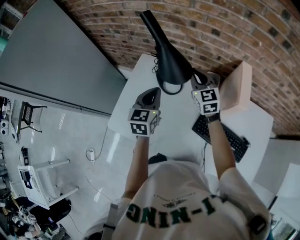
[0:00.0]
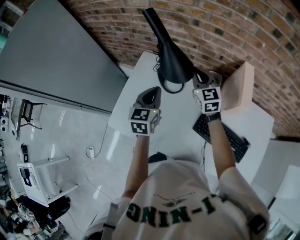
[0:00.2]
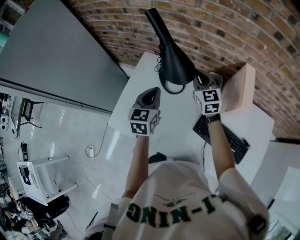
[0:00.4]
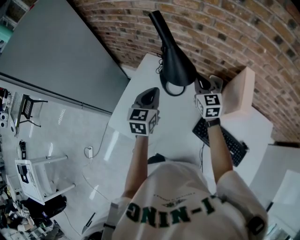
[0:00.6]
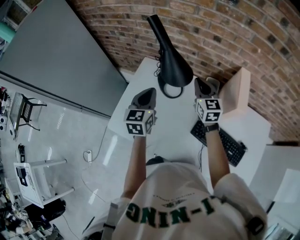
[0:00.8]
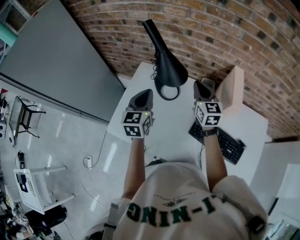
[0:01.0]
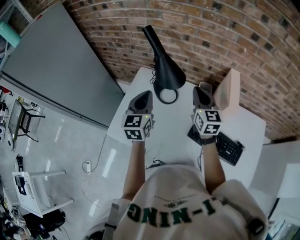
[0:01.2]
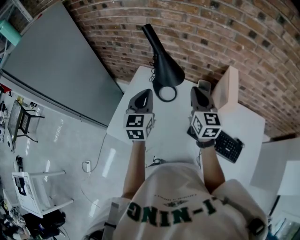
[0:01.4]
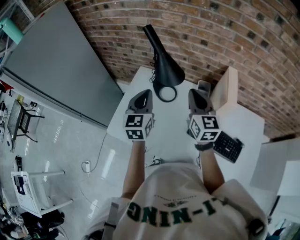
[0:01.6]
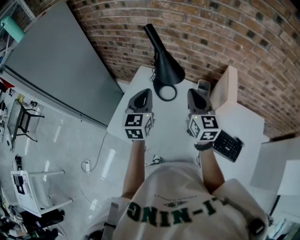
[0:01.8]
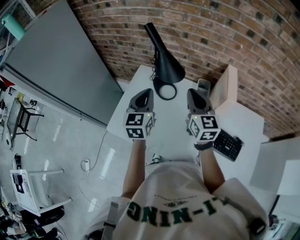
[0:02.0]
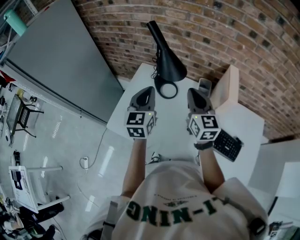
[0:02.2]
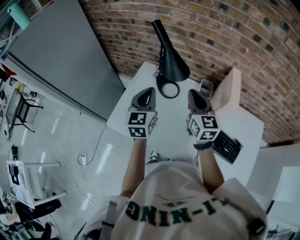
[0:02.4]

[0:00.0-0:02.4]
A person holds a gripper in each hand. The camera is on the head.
0:00.0 to 0:01.2: The left gripper goes about 5 cm upward; the right gripper is displaced backward by about 10 cm.
0:01.2 to 0:02.4: The right gripper shifts roughly 5 cm backward.

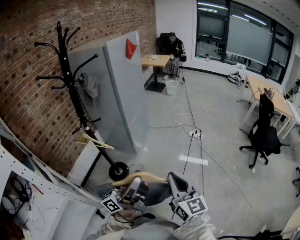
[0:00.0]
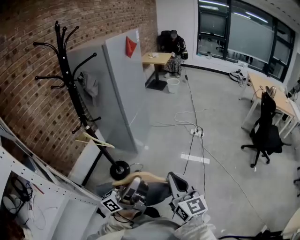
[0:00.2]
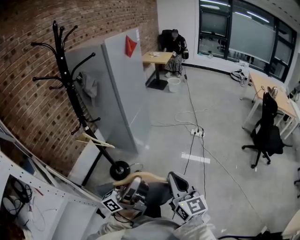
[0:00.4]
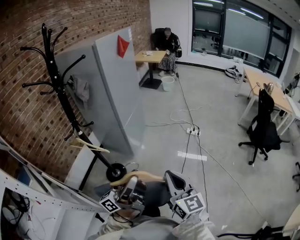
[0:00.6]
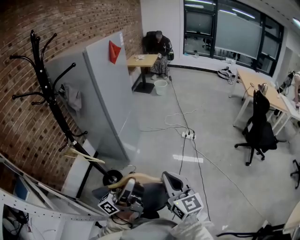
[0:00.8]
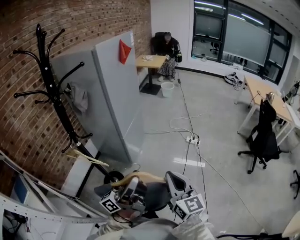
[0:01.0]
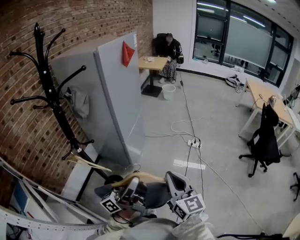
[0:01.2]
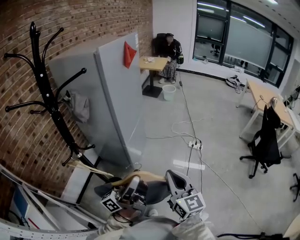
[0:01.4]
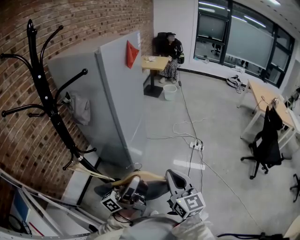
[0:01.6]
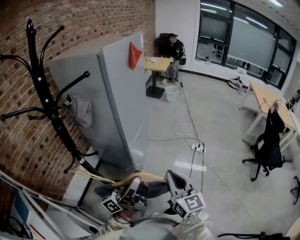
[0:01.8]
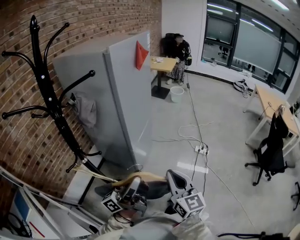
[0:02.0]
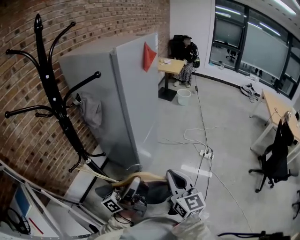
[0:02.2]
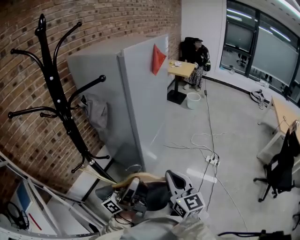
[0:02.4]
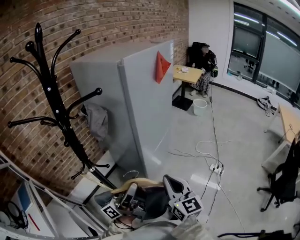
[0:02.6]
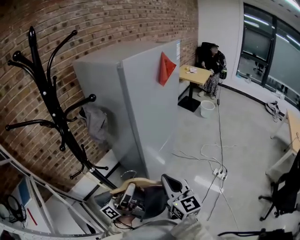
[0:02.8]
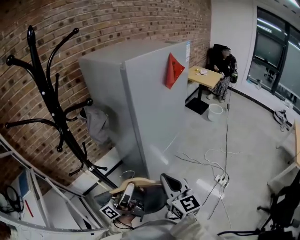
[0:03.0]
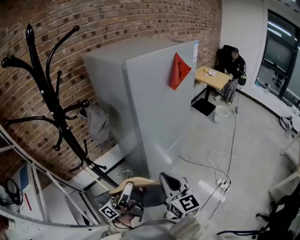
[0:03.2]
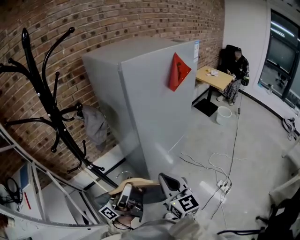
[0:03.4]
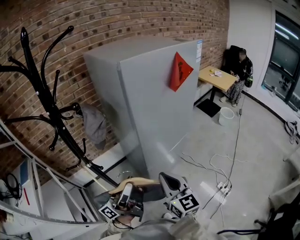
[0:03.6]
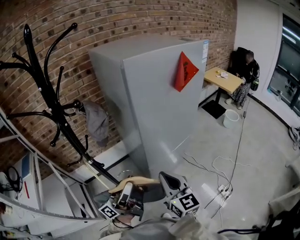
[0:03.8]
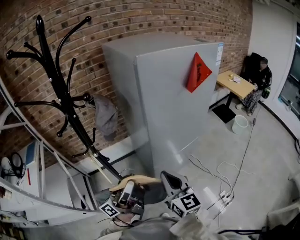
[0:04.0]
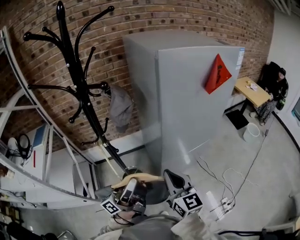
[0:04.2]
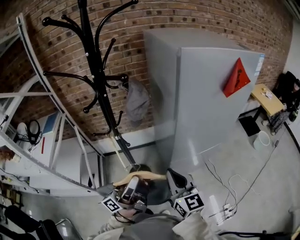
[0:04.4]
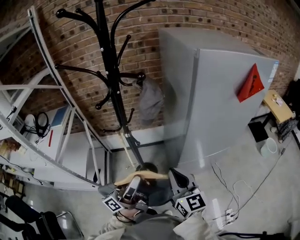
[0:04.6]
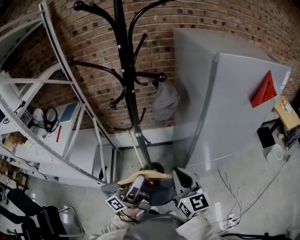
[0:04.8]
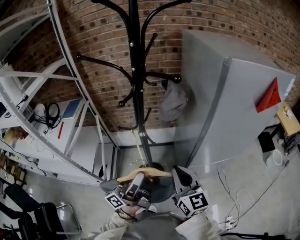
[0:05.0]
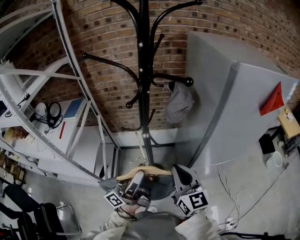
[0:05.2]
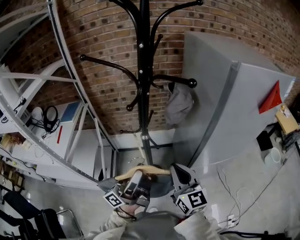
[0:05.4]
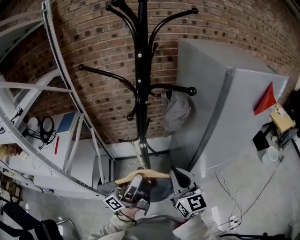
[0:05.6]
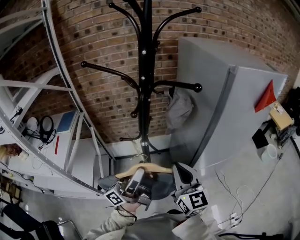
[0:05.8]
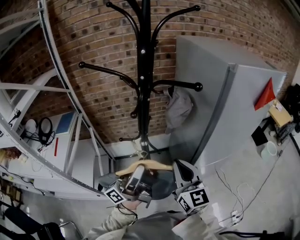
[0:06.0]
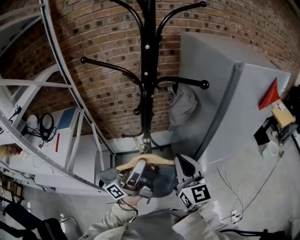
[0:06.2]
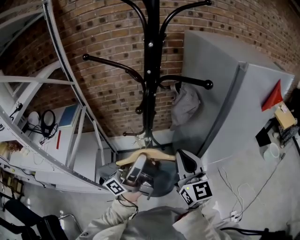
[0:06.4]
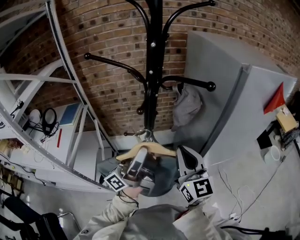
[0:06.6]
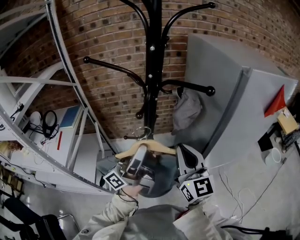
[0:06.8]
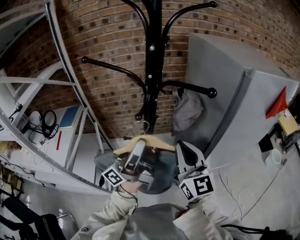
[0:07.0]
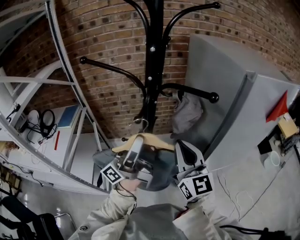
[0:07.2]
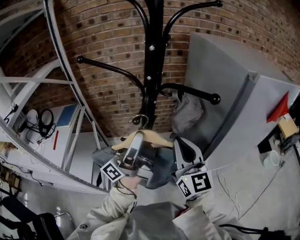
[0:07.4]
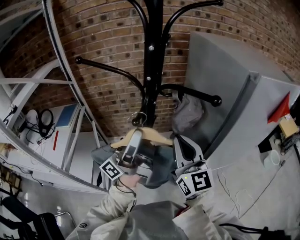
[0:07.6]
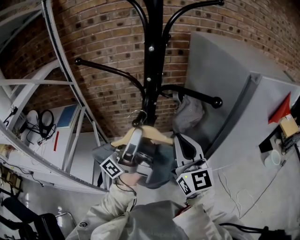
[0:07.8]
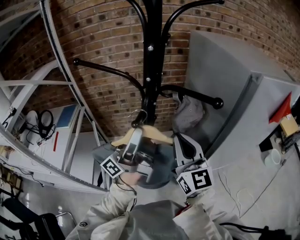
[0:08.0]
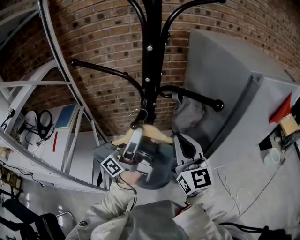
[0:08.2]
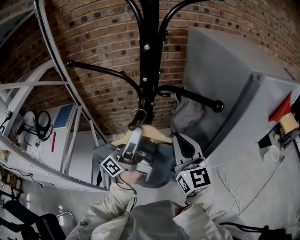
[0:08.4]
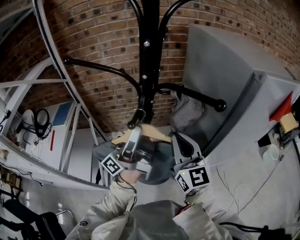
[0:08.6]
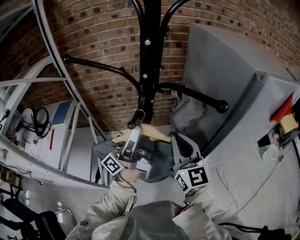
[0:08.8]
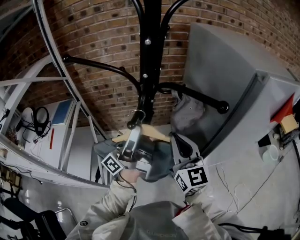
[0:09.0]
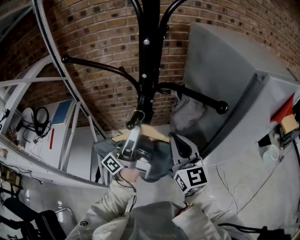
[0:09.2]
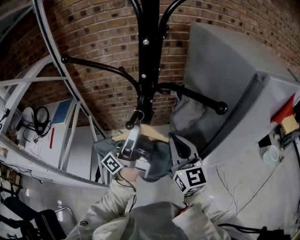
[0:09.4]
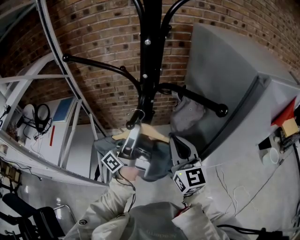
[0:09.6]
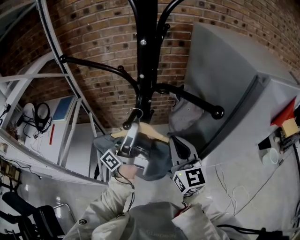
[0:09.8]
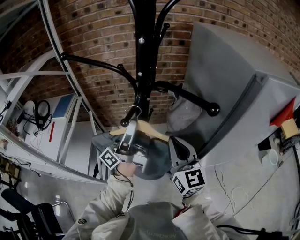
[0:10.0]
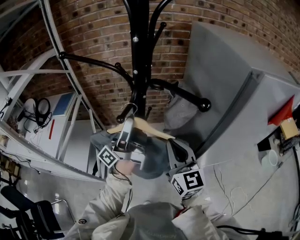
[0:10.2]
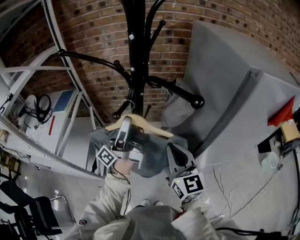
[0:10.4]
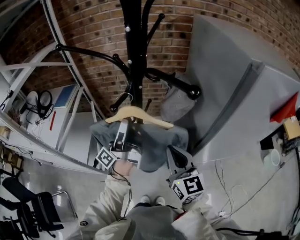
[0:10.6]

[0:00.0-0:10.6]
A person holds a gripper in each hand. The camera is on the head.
0:00.0 to 0:01.6: Both grippers travel together forward and to the left, about 30 cm.
0:01.6 to 0:03.0: The left gripper moves approximately 20 cm, and rotates approximately 30 degrees. The right gripper shifts by roughly 25 cm, and rotates some 30 degrees.
0:03.0 to 0:04.6: The right gripper changes place by some 5 cm, and swivels some 30 degrees. Meanwhile the left gripper changes its angle by approximately 30 degrees.
0:04.6 to 0:06.0: The right gripper heads to the left, covering some 10 cm. Meanwhile the left gripper travels to the left, forward and upward by some 15 cm.
0:06.0 to 0:07.6: The grippers both shift forward and upward by some 15 cm.
0:07.6 to 0:09.0: The left gripper changes place by approximately 5 cm. Meanwhile the right gripper ends up about 5 cm from where it was.
0:09.0 to 0:10.6: The left gripper shifts approximately 5 cm downward; the right gripper travels backward and downward by some 10 cm.

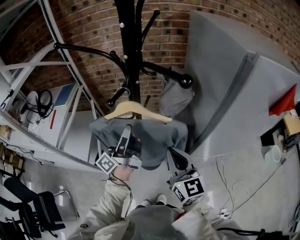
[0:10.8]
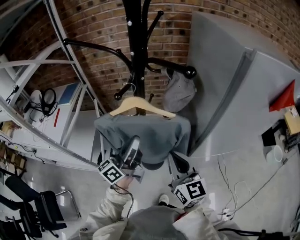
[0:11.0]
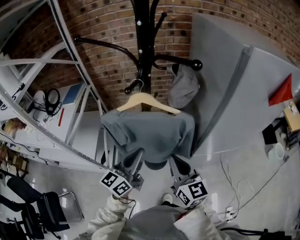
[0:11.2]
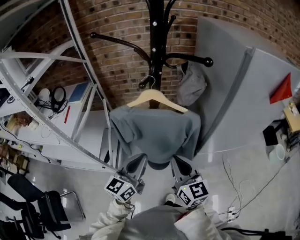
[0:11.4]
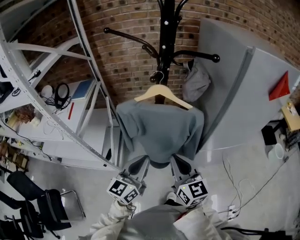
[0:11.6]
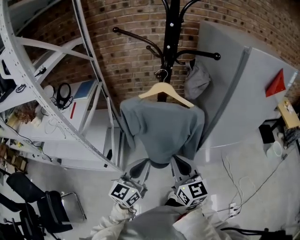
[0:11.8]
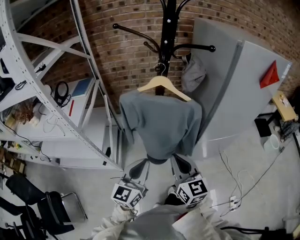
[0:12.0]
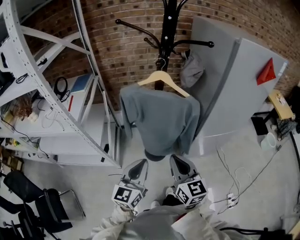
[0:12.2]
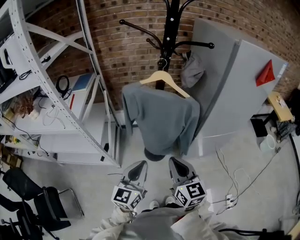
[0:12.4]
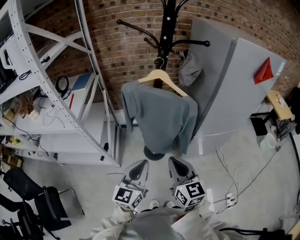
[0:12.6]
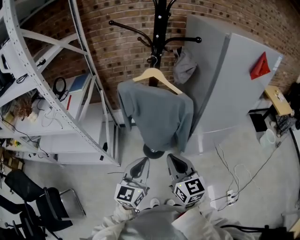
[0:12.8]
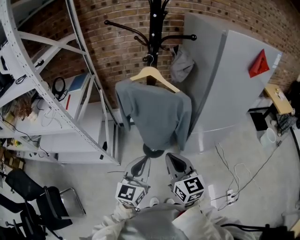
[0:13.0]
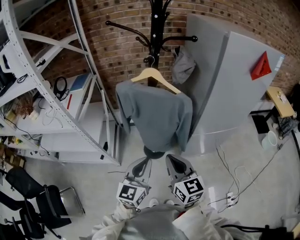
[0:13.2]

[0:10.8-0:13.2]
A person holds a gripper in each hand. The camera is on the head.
0:10.8 to 0:12.0: The left gripper shifts approximately 30 cm backward, and rolls clockwise, seen from behind, by roughly 60 degrees, while the right gripper moves backward and to the left, about 25 cm.
0:12.0 to 0:13.2: The left gripper shifts some 5 cm to the right. Meanwhile the right gripper shifts roughly 5 cm backward.

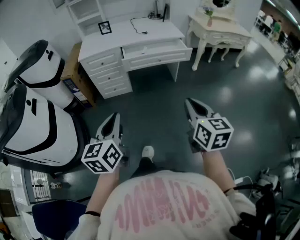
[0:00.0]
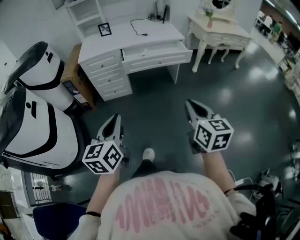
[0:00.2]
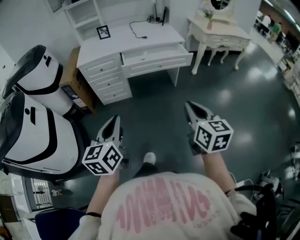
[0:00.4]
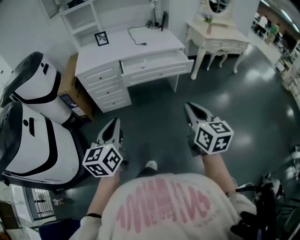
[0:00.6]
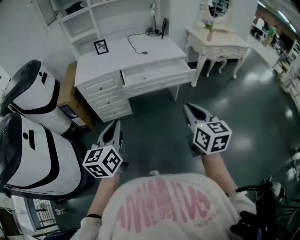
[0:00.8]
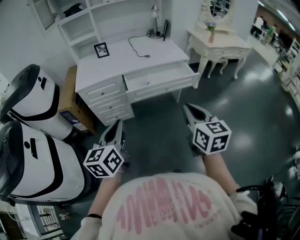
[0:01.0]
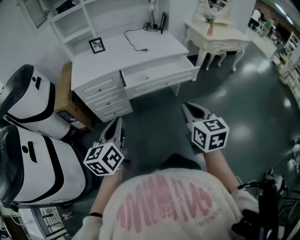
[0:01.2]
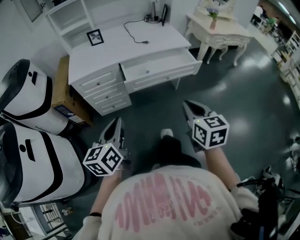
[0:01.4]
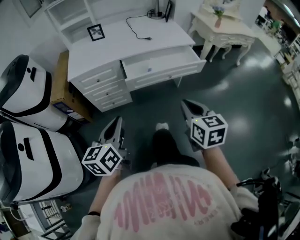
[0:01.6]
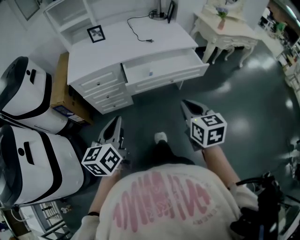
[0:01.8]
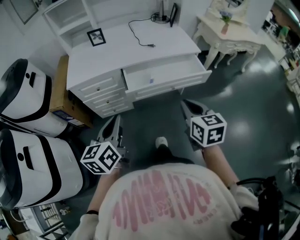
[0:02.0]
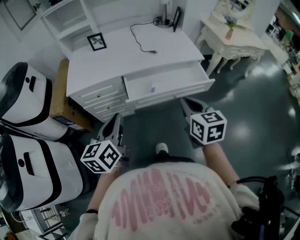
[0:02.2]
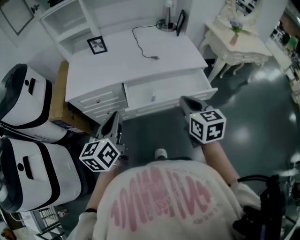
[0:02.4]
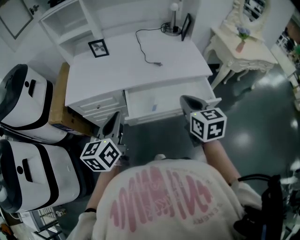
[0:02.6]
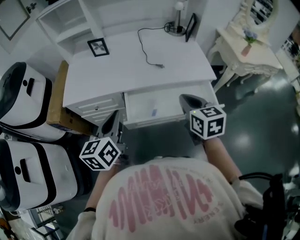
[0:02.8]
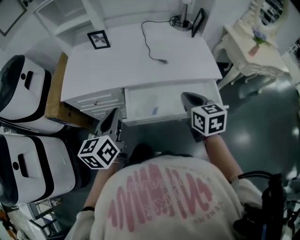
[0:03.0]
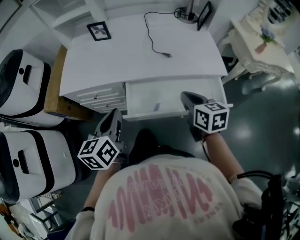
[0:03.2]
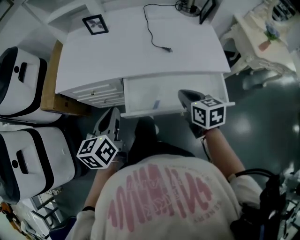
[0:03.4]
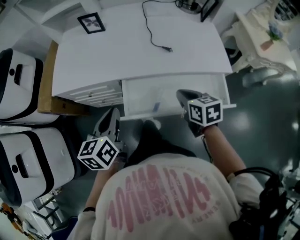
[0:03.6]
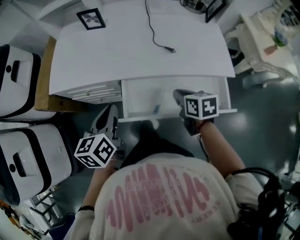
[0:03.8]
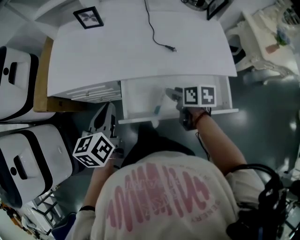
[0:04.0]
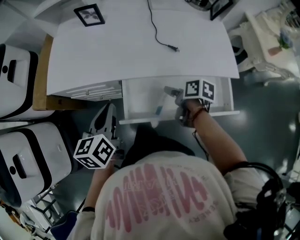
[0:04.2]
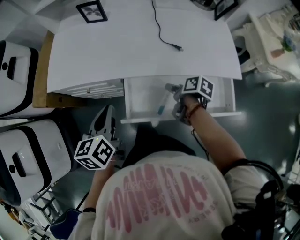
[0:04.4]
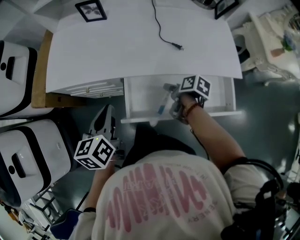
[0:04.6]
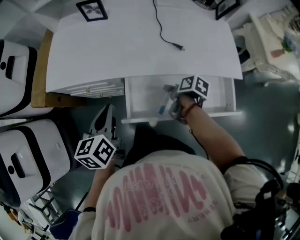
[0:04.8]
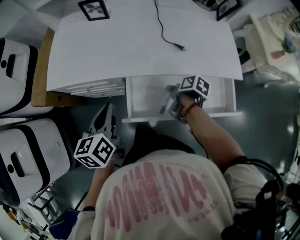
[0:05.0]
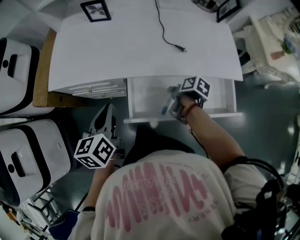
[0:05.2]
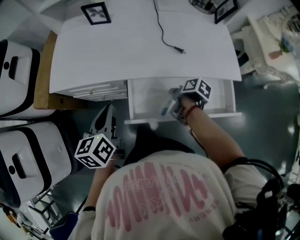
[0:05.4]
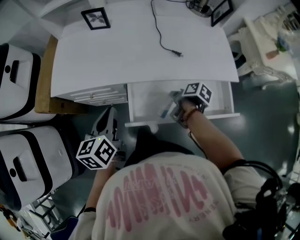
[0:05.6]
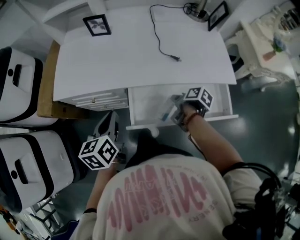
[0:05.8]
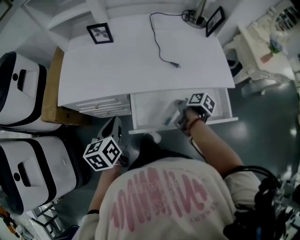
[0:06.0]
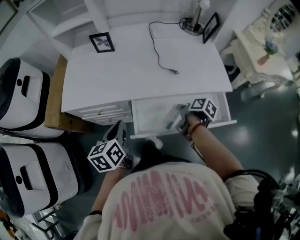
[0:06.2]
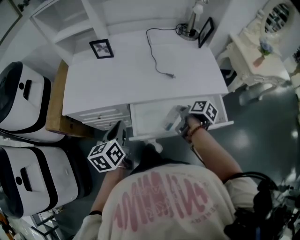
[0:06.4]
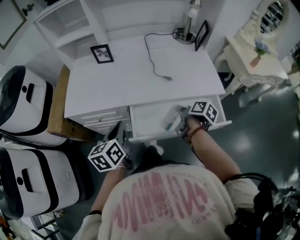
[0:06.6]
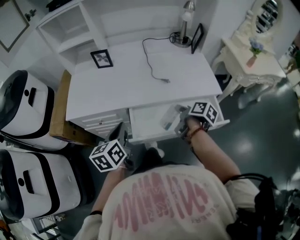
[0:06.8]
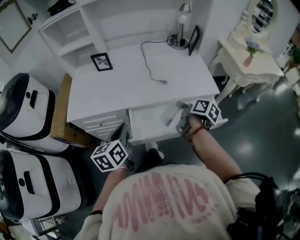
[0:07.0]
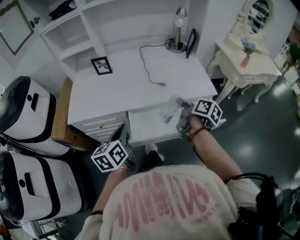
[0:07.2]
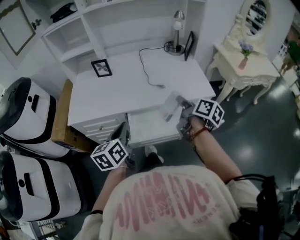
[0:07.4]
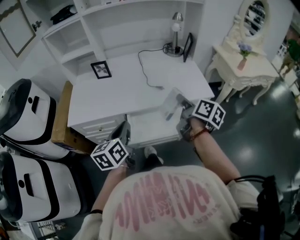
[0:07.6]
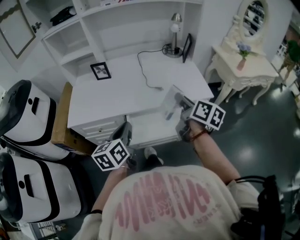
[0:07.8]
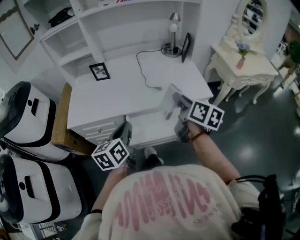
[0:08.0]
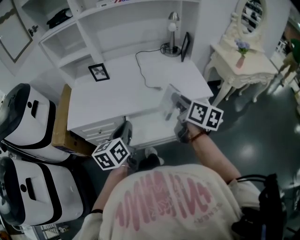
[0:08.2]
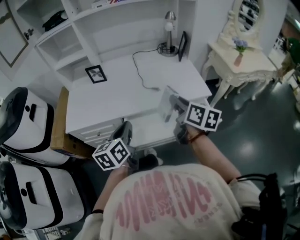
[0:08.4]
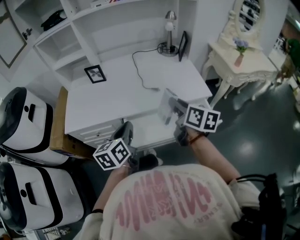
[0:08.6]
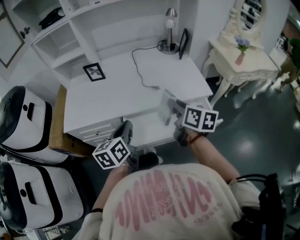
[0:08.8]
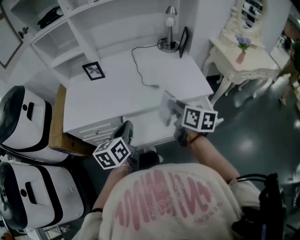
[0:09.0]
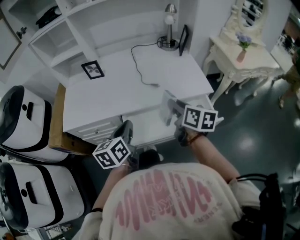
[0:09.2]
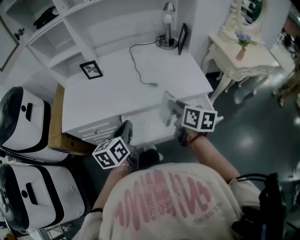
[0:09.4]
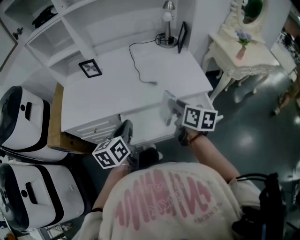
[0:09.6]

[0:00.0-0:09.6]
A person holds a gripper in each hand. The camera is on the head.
0:00.0 to 0:01.6: The two grippers go approximately 25 cm forward.
0:01.6 to 0:03.2: The grippers both shift forward by approximately 35 cm. The right gripper turns by approximately 20 degrees.
0:03.2 to 0:04.8: The left gripper moves downward and forward, roughly 10 cm. The right gripper heads downward and forward, covering approximately 20 cm, rotates around the line of its fingers by approximately 50 degrees, clockwise from behind, and opens its fingers.
0:04.8 to 0:06.4: The right gripper shifts some 10 cm upward, changes its angle by about 20 degrees, and closes.
0:06.4 to 0:08.0: The left gripper heads upward and to the right, covering about 10 cm, while the right gripper goes some 25 cm upward, and angles its fingers upward, by roughly 30 degrees.
0:08.0 to 0:09.6: The left gripper shifts by roughly 5 cm; the right gripper moves downward, approximately 5 cm.
